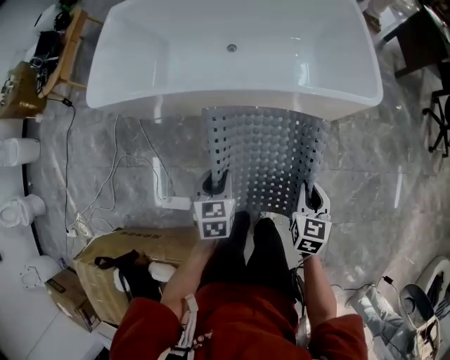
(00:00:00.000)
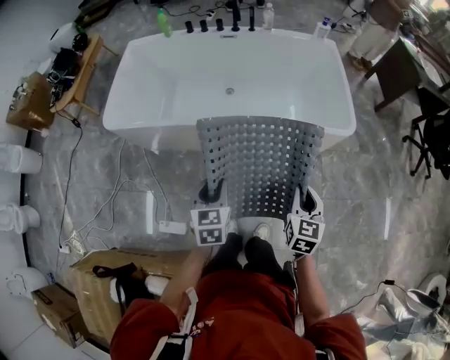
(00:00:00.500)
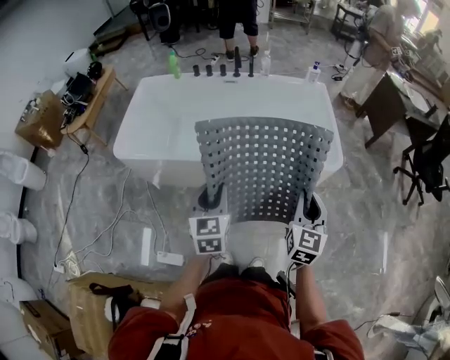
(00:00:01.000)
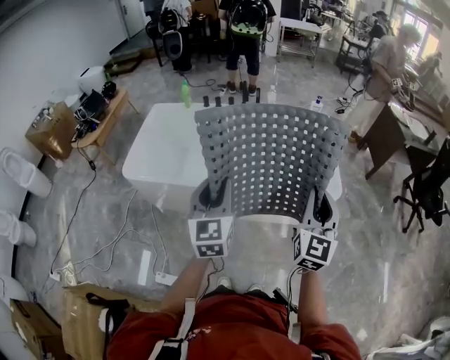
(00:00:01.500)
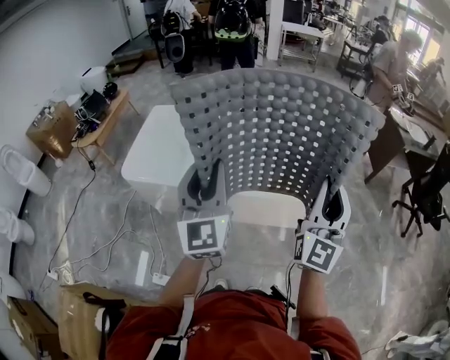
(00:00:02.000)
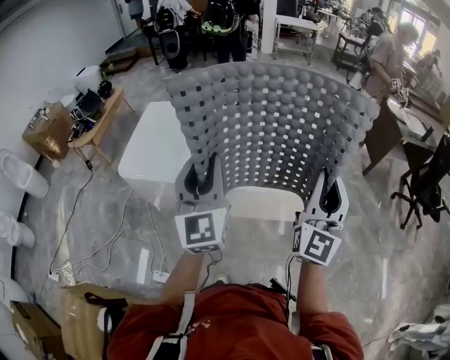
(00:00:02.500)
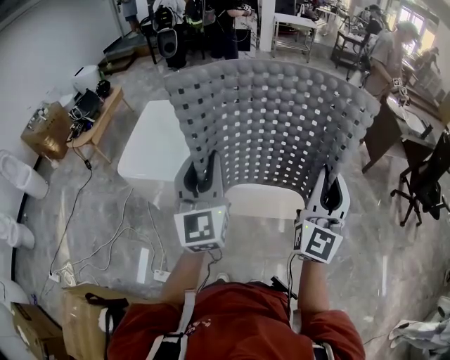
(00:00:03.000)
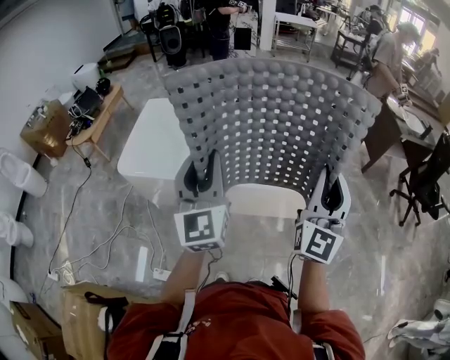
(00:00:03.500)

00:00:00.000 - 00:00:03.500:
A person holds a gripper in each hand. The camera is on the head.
00:00:00.000 - 00:00:02.000: Both grippers travel together upward, approximately 50 cm. The right gripper angles its fingers upward, by some 60 degrees. Meanwhile the left gripper angles its fingers upward, by approximately 60 degrees.
00:00:02.000 - 00:00:03.500: The grippers move only a little.

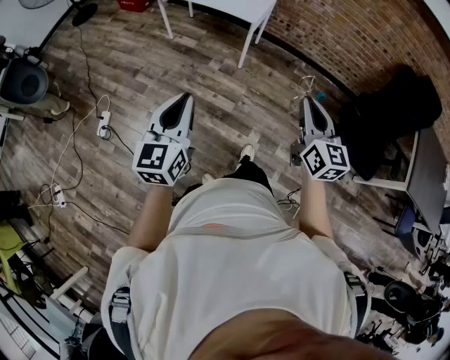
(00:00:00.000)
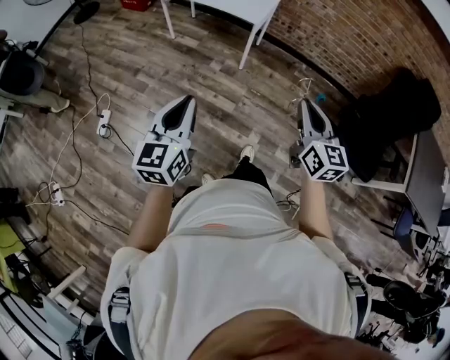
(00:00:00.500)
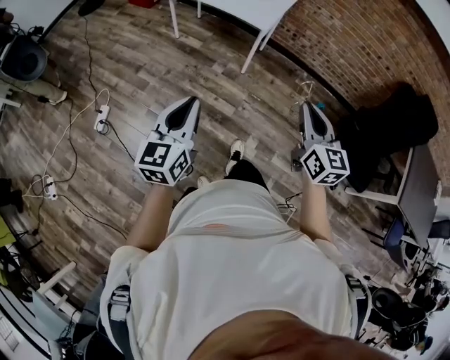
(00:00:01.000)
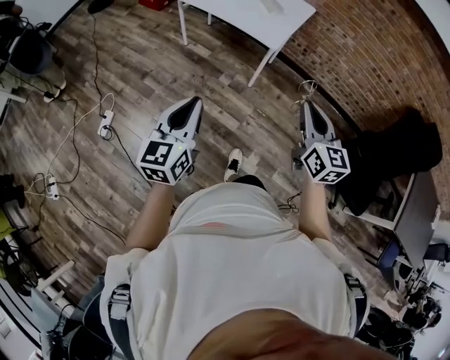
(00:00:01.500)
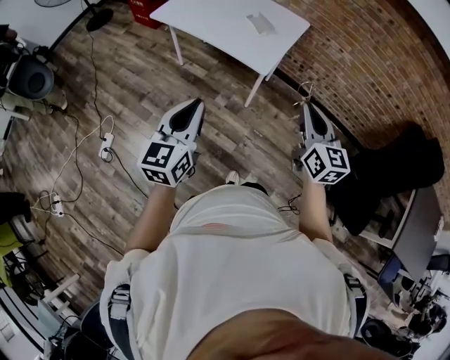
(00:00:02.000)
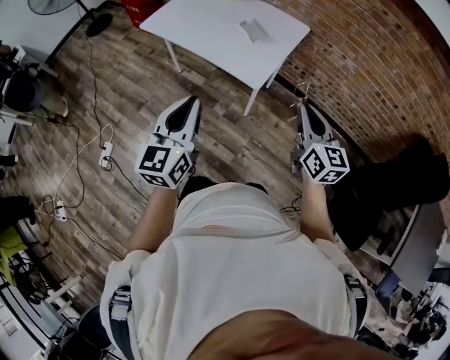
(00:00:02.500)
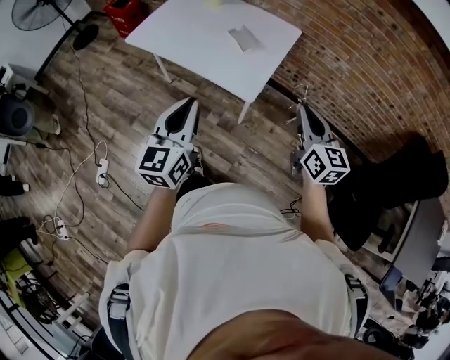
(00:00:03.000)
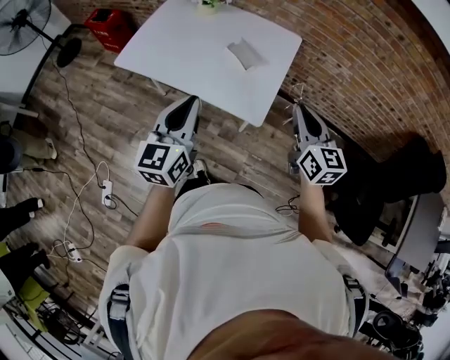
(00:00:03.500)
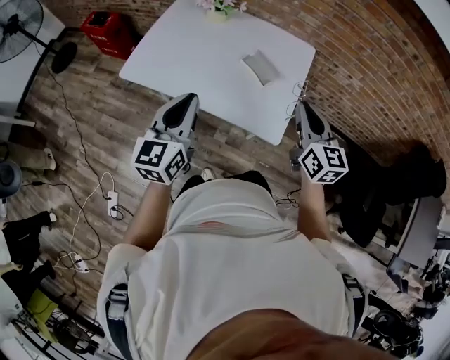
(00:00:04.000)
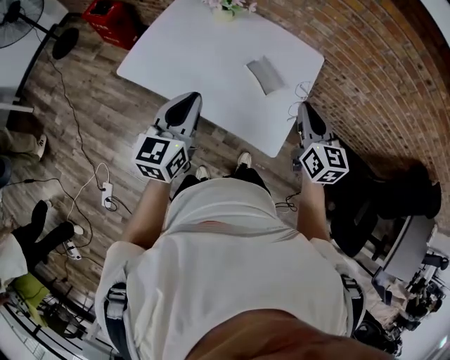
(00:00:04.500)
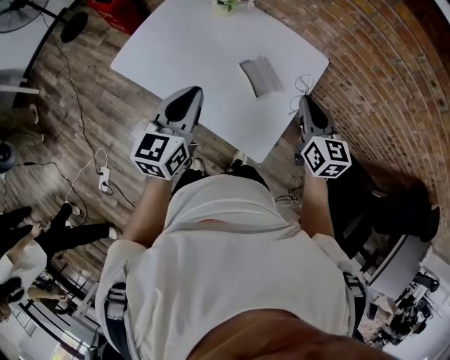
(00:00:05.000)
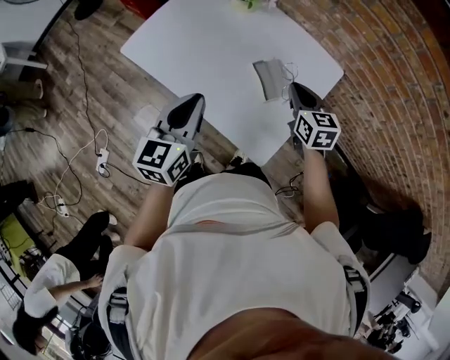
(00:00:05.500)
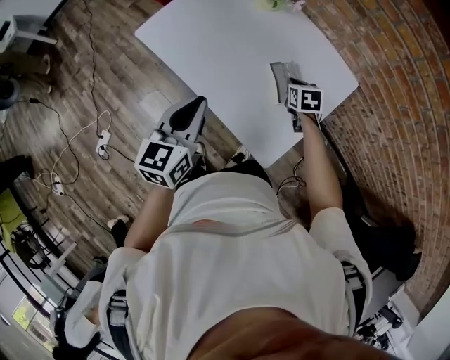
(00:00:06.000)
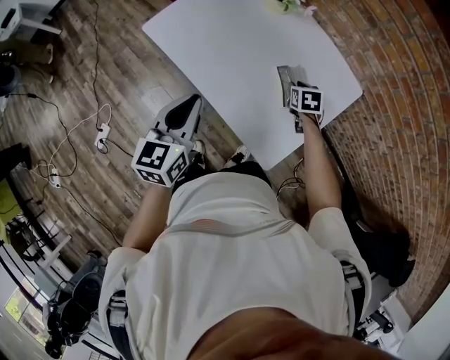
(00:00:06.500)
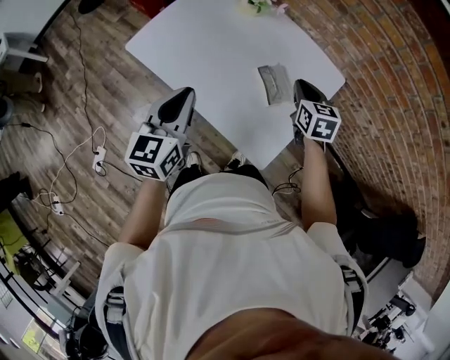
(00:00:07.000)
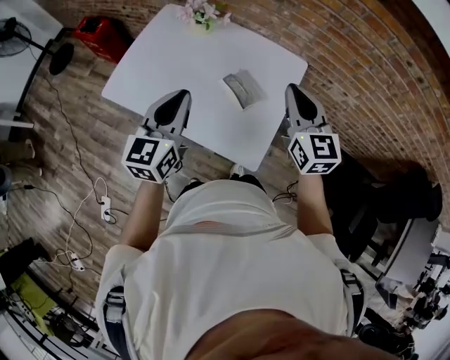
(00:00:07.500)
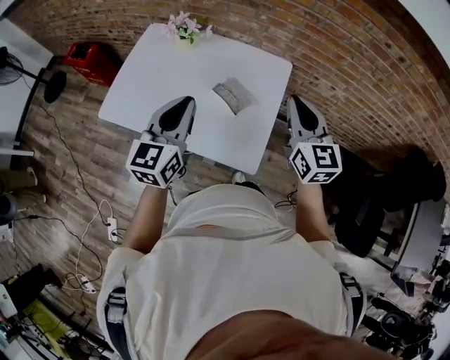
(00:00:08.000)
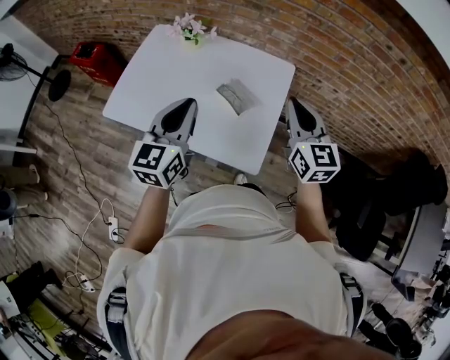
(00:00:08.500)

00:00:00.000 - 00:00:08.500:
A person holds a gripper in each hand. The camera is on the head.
00:00:00.000 - 00:00:02.000: Both grippers travel together forward, about 25 cm.
00:00:02.000 - 00:00:04.000: The two grippers go some 40 cm forward.
00:00:04.000 - 00:00:06.500: The left gripper heads downward and forward, covering about 10 cm, and turns by approximately 30 degrees. Meanwhile the right gripper moves downward and forward, approximately 40 cm, and points its fingers about 50 degrees further downward.
00:00:06.500 - 00:00:08.500: The left gripper is displaced upward and to the right by roughly 15 cm, and changes its angle by some 30 degrees, while the right gripper heads upward and backward, covering about 35 cm, points its fingers approximately 50 degrees further upward, and closes up.

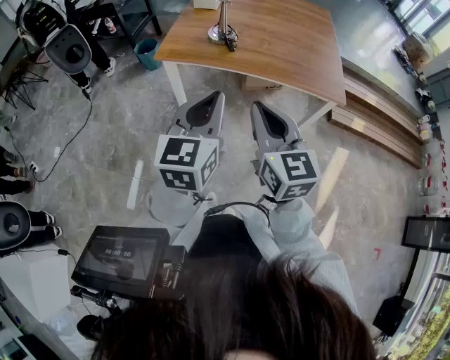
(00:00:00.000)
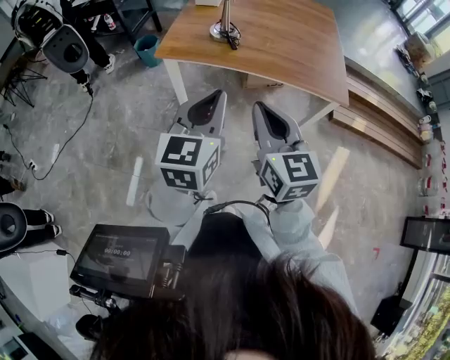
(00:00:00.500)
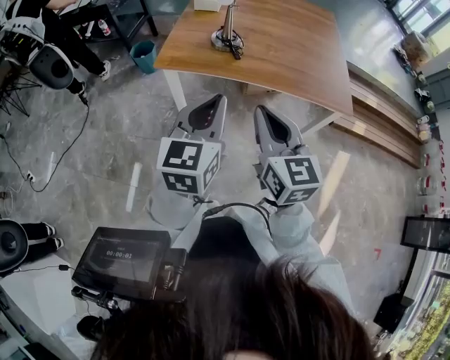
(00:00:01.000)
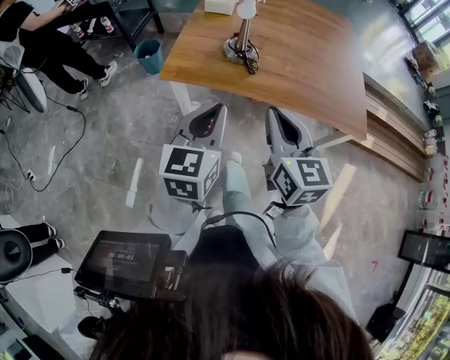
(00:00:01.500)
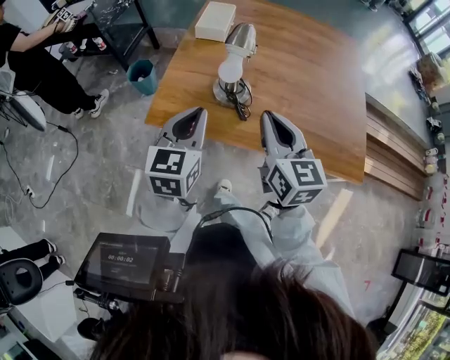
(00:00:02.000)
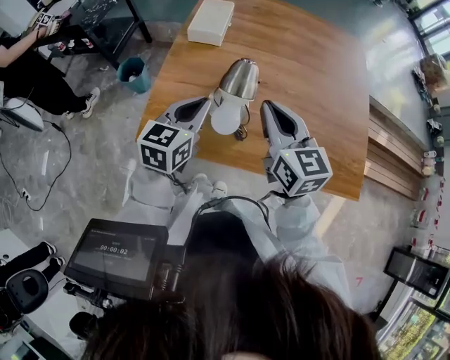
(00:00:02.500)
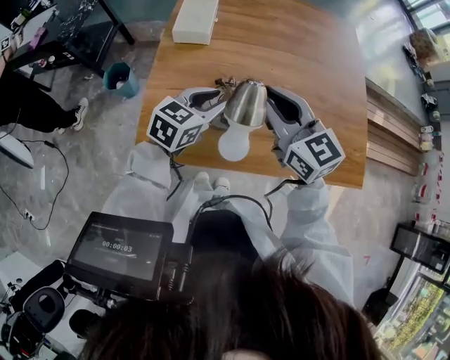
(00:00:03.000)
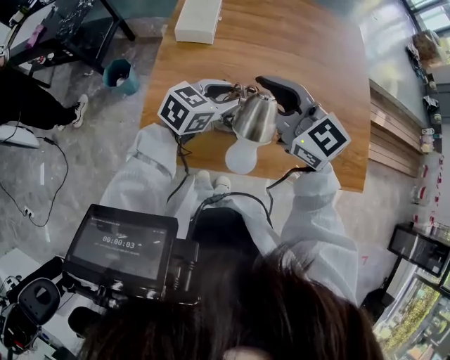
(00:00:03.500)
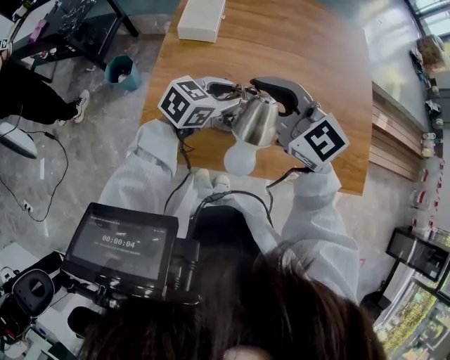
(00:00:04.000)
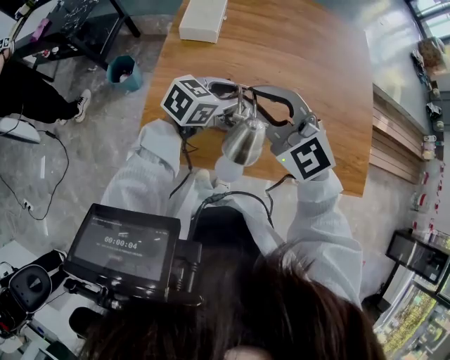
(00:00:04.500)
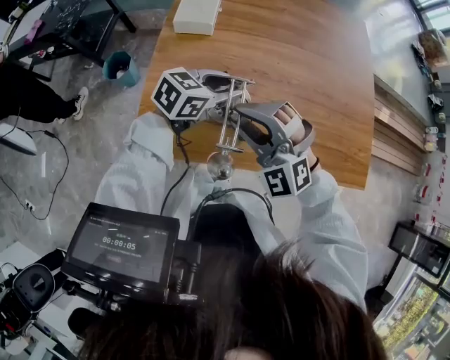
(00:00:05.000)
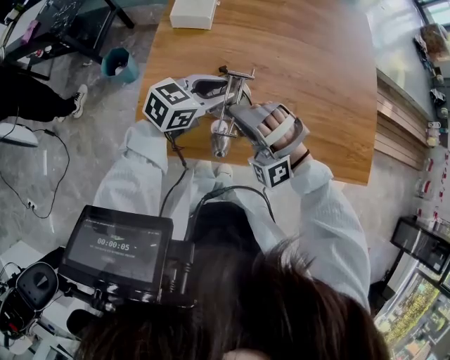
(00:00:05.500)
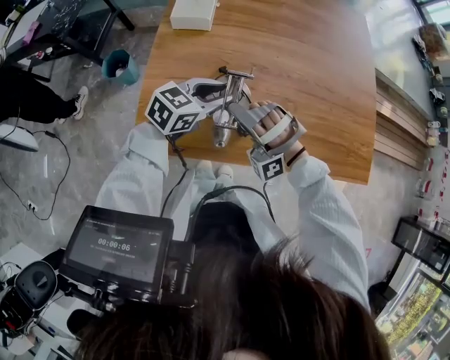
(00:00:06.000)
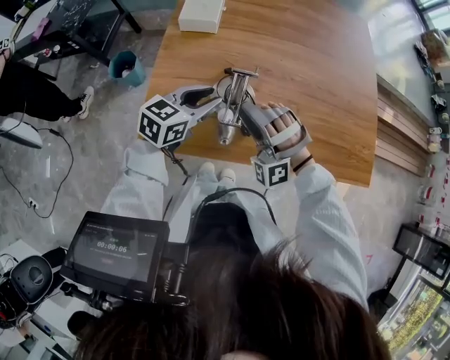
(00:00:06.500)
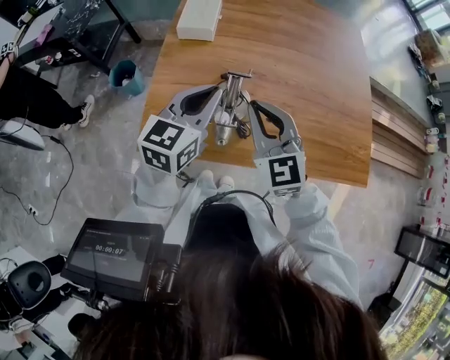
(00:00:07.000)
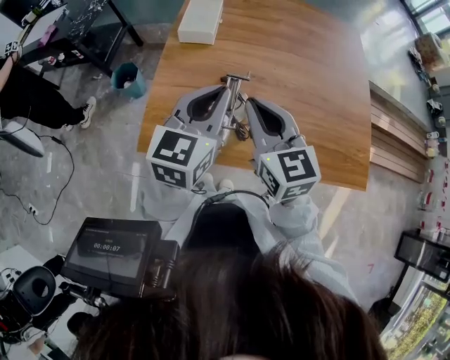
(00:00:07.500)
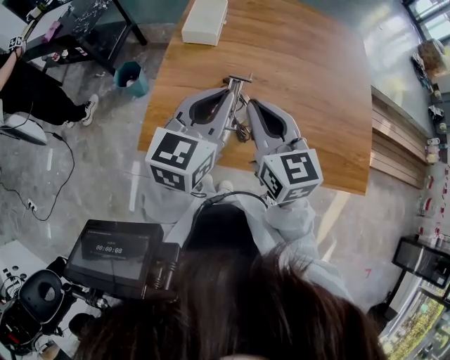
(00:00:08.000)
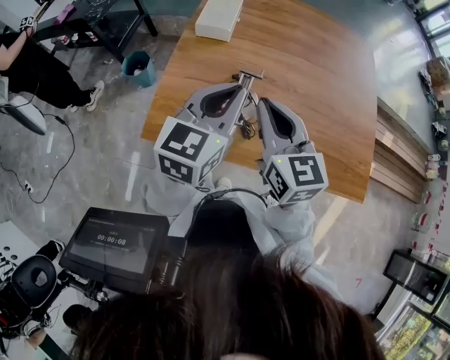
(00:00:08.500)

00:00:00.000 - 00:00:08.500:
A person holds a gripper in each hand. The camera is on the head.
00:00:00.000 - 00:00:02.000: The pair of grippers is taken forward, approximately 40 cm.
00:00:02.000 - 00:00:04.000: The right gripper goes some 20 cm forward and to the left, and turns by roughly 40 degrees. The left gripper shifts some 25 cm forward and downward, turns by approximately 50 degrees, and opens.
00:00:04.000 - 00:00:06.500: The left gripper moves to the left, roughly 5 cm, while the right gripper shifts about 15 cm downward, rolls counterclockwise, seen from behind, by approximately 70 degrees, and opens.
00:00:06.500 - 00:00:08.500: Both grippers travel together upward, about 15 cm. The left gripper rotates some 30 degrees, and closes. Meanwhile the right gripper rolls clockwise, seen from behind, by roughly 90 degrees, and closes up.

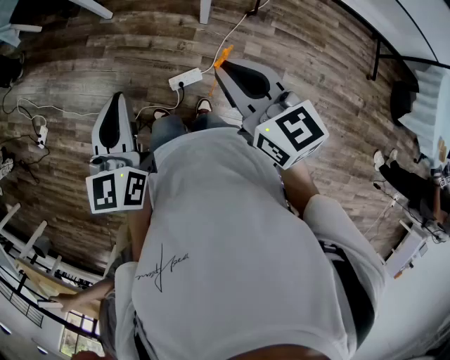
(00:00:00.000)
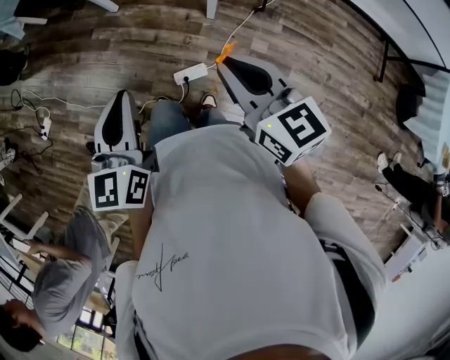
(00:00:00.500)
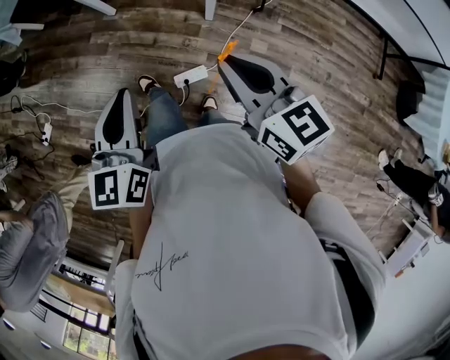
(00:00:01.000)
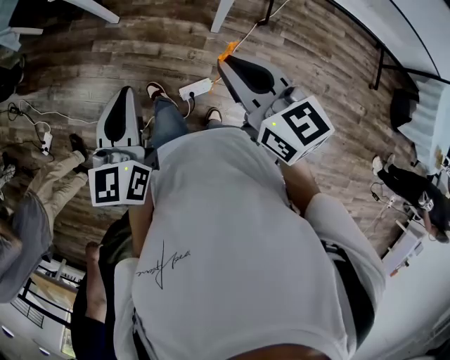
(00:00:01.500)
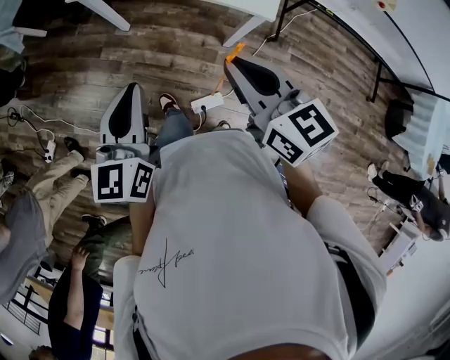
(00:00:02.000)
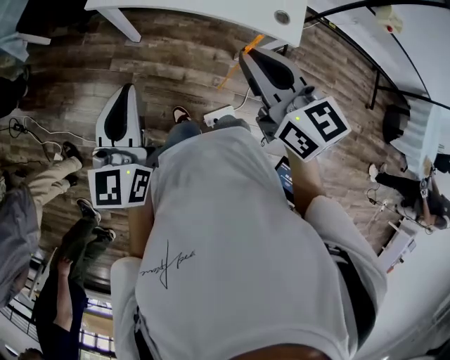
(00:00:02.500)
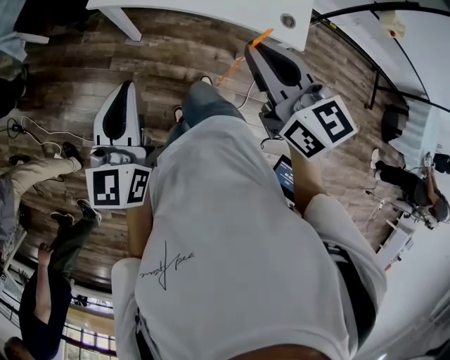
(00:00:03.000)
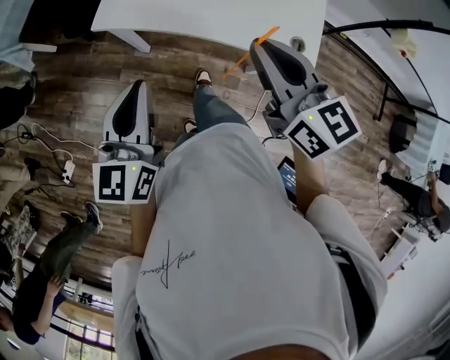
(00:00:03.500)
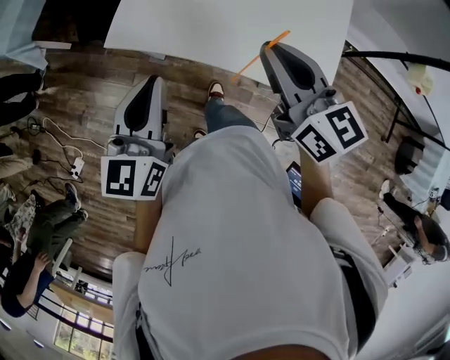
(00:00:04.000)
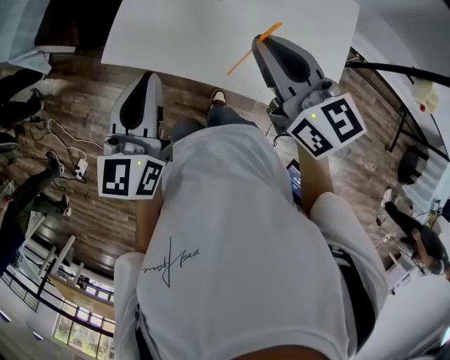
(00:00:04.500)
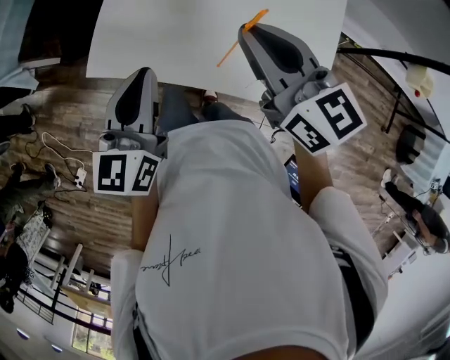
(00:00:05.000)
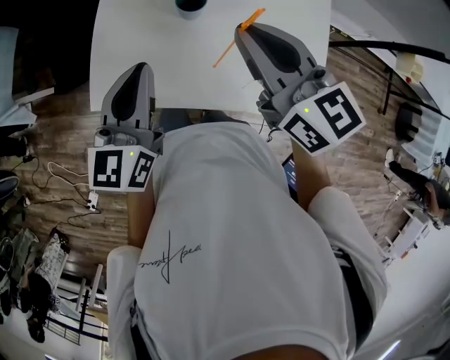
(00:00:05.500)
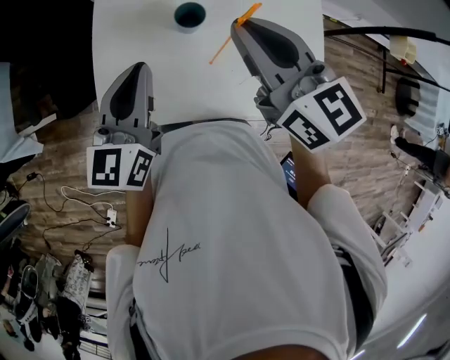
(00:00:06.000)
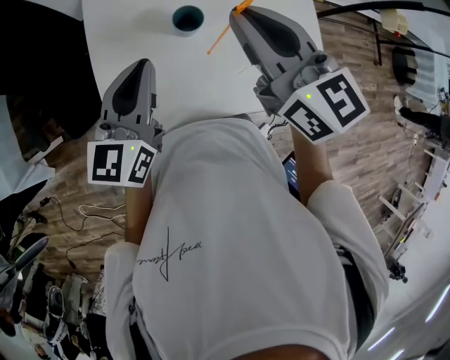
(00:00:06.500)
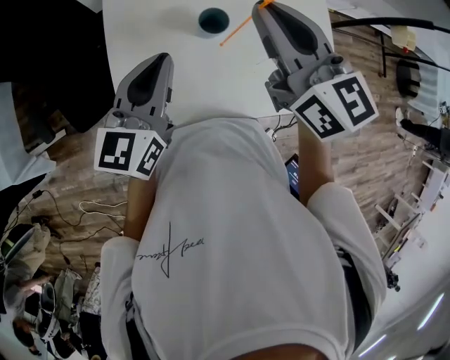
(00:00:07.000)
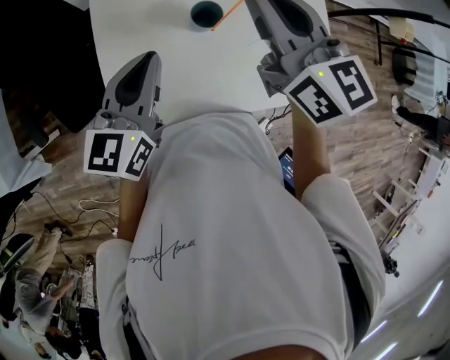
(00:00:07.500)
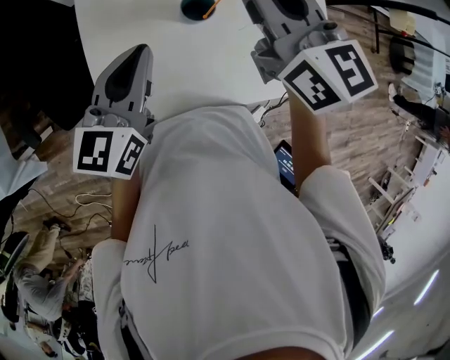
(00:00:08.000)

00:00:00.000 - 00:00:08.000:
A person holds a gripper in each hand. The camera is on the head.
00:00:00.000 - 00:00:02.000: Both grippers travel together forward and to the left, approximately 25 cm.
00:00:02.000 - 00:00:04.000: Both grippers move forward, roughly 30 cm.
00:00:04.000 - 00:00:06.000: The two grippers go roughly 20 cm forward.
00:00:06.000 - 00:00:08.000: The right gripper shifts some 10 cm forward, while the left gripper heads forward, covering some 5 cm.
